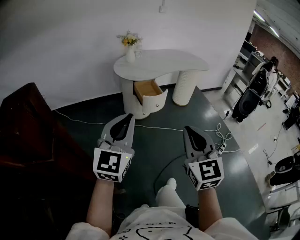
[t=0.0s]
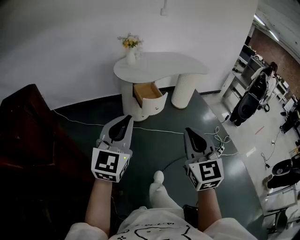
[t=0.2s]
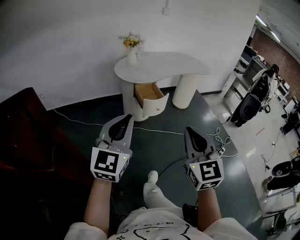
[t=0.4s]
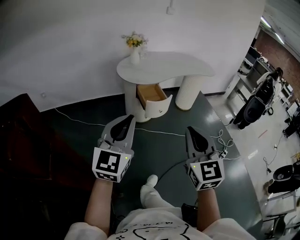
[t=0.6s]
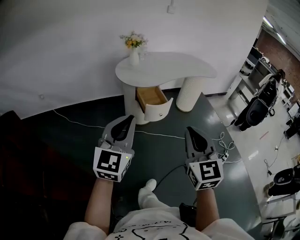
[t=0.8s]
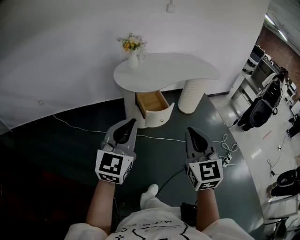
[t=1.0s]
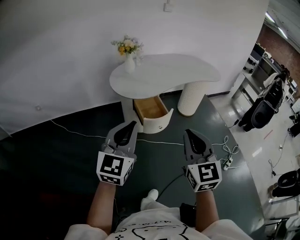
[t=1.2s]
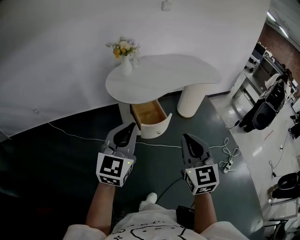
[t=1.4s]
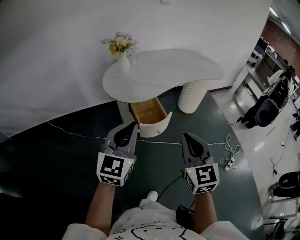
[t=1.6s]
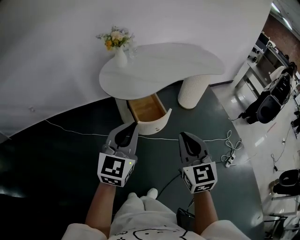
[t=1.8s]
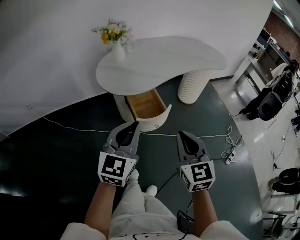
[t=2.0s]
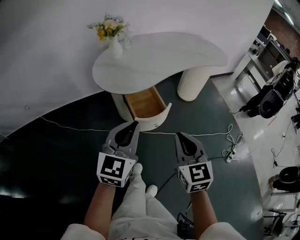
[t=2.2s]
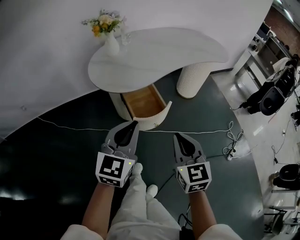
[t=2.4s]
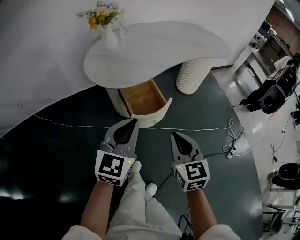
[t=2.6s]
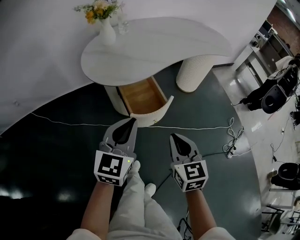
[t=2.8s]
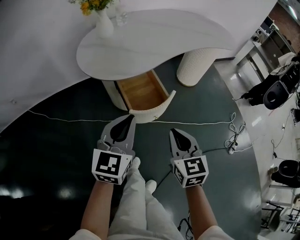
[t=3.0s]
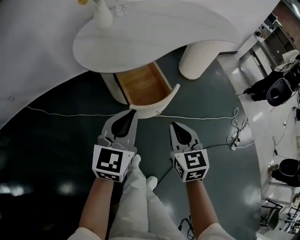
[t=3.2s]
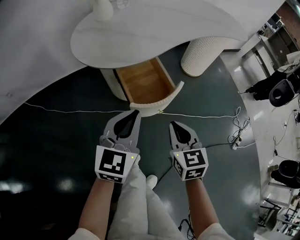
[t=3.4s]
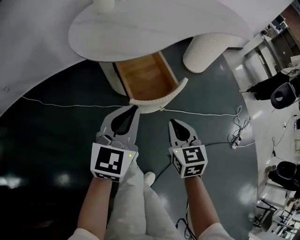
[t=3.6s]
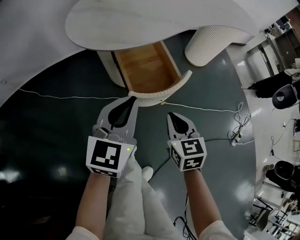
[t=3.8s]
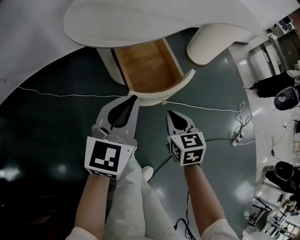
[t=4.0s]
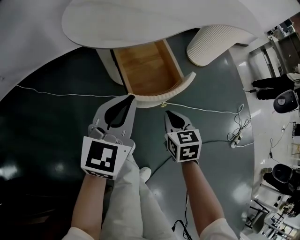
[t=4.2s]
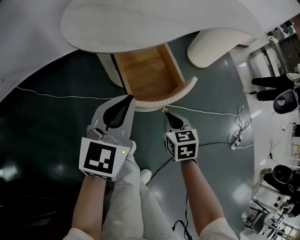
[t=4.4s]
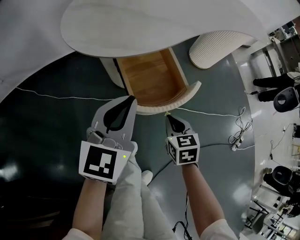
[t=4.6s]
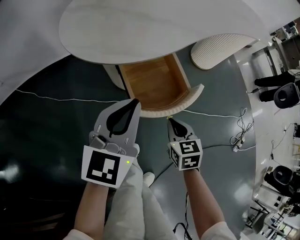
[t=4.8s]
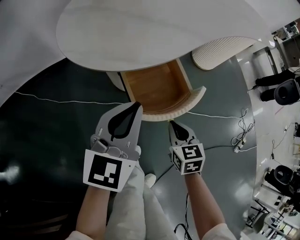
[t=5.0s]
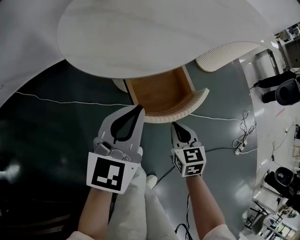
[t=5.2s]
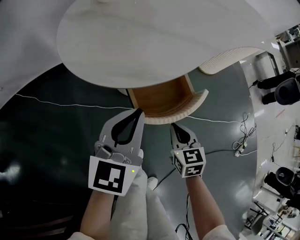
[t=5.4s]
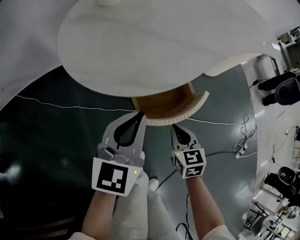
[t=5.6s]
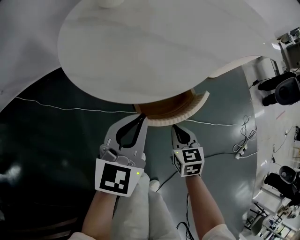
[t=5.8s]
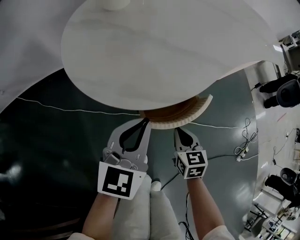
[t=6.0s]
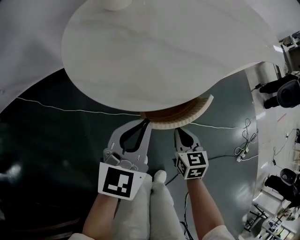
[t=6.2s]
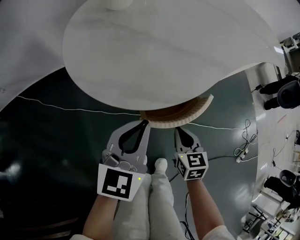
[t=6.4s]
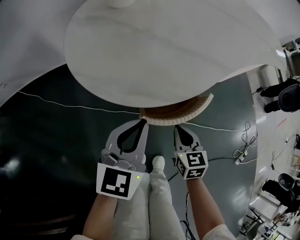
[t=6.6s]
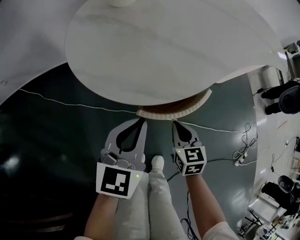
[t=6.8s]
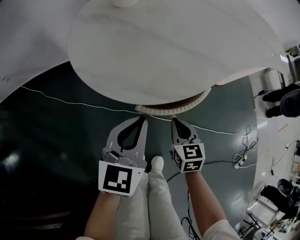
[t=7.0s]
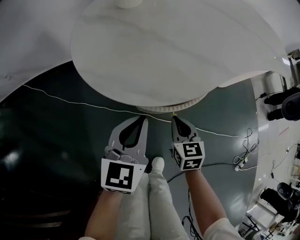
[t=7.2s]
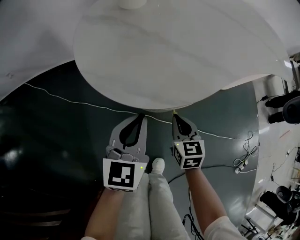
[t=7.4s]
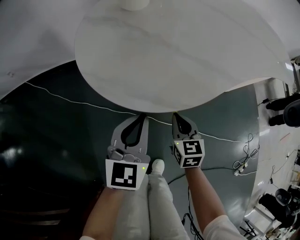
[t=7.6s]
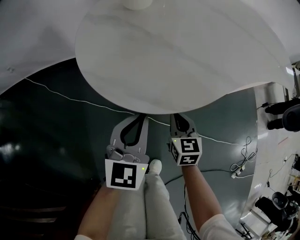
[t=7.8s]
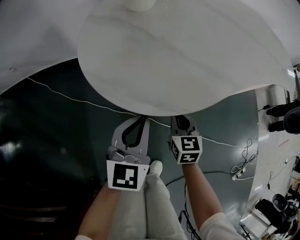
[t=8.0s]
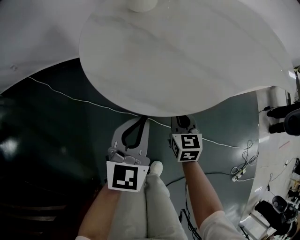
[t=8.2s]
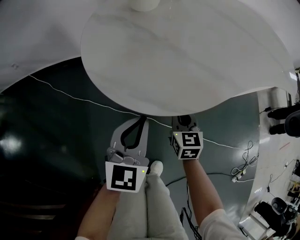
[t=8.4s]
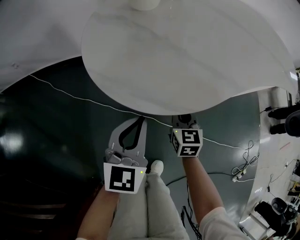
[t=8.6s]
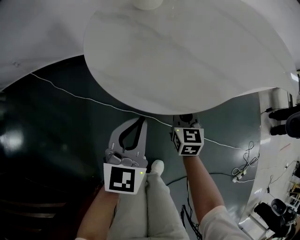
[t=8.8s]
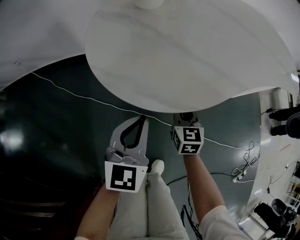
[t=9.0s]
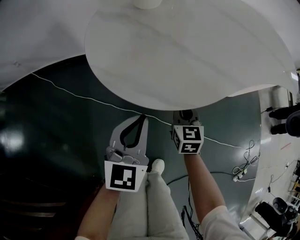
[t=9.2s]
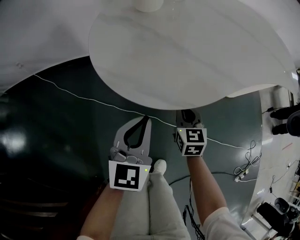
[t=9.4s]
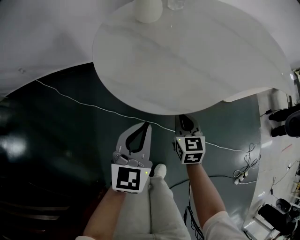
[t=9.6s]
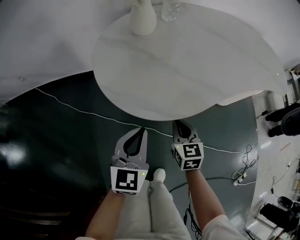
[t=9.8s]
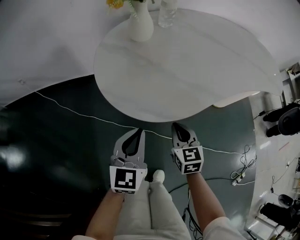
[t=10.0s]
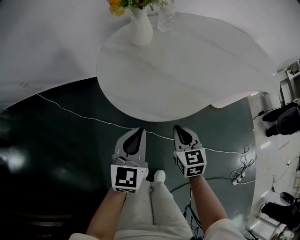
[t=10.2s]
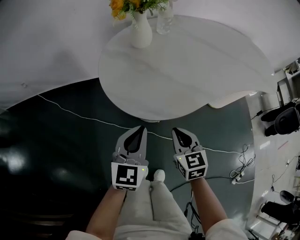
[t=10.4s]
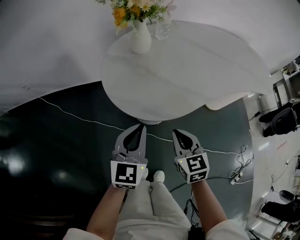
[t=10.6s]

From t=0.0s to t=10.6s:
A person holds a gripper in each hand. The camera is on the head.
From t=0.0s to t=1.6s: The grippers both shift forward by some 35 cm.
From t=1.6s to t=3.0s: The two grippers go some 25 cm downward and forward.
From t=3.0s to t=4.6s: The right gripper heads downward and forward, covering approximately 25 cm, and changes its angle by approximately 20 degrees, while the left gripper travels downward and forward by about 15 cm.
From t=4.6s to t=6.0s: The grippers both shift forward by approximately 10 cm.
From t=6.0s to t=7.6s: The right gripper shifts some 5 cm forward.
From t=7.6s to t=9.0s: The right gripper is displaced forward by roughly 5 cm.
From t=9.0s to t=10.6s: The right gripper heads upward and backward, covering about 20 cm. The left gripper moves upward, approximately 15 cm.

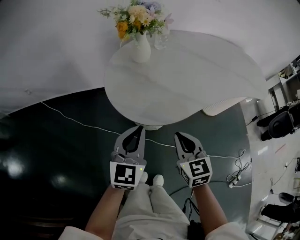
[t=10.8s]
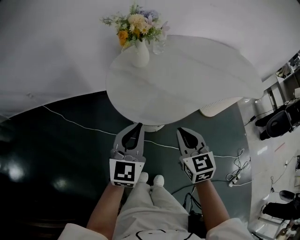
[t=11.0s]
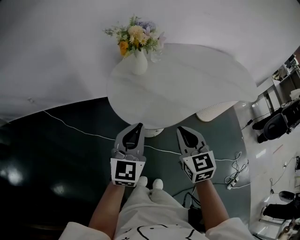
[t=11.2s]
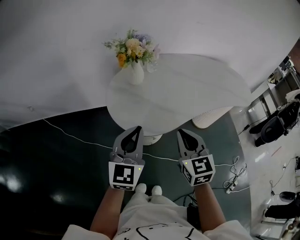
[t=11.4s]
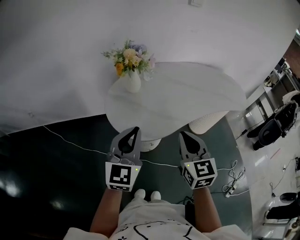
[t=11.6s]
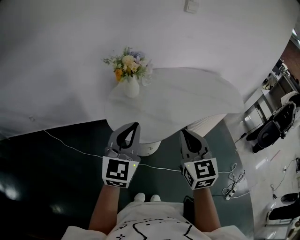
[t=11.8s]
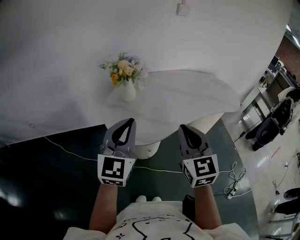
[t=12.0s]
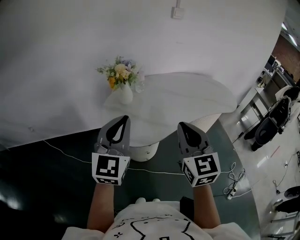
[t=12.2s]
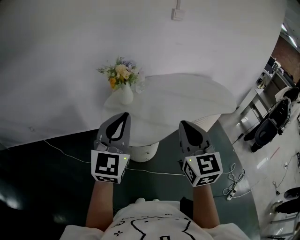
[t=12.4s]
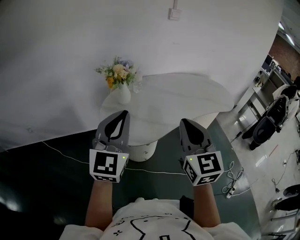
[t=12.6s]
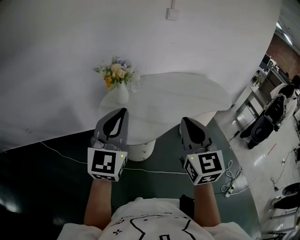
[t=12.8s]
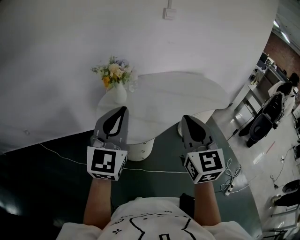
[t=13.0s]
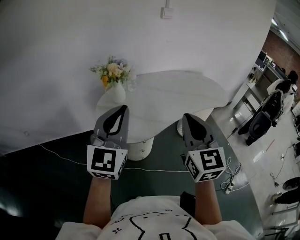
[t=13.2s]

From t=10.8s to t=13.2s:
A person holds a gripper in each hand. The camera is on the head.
From t=10.8s to t=12.0s: Both grippers move upward, about 25 cm. The right gripper changes its angle by some 20 degrees.
From t=12.0s to t=13.2s: Both grippers move upward, approximately 5 cm.

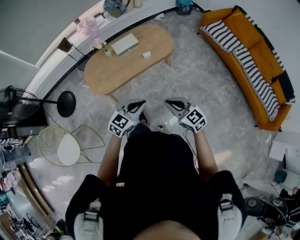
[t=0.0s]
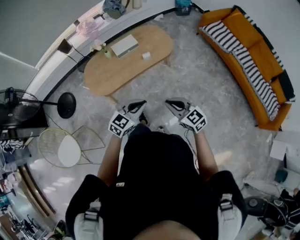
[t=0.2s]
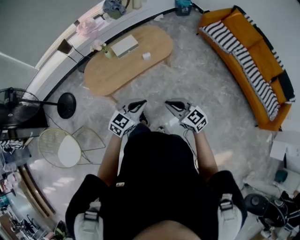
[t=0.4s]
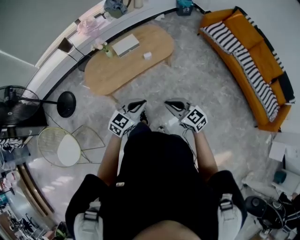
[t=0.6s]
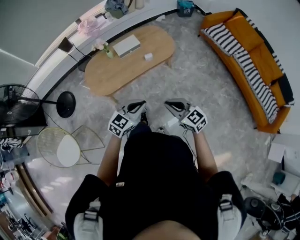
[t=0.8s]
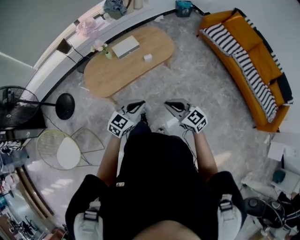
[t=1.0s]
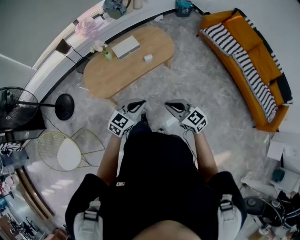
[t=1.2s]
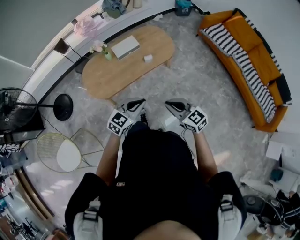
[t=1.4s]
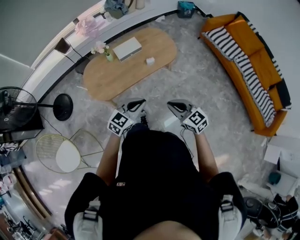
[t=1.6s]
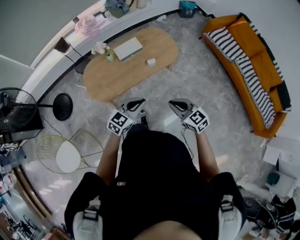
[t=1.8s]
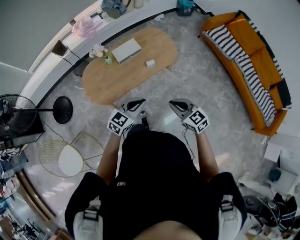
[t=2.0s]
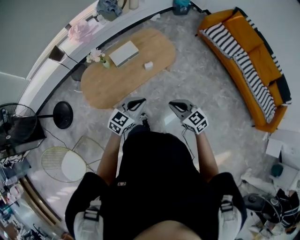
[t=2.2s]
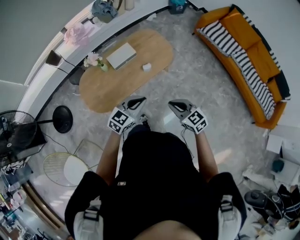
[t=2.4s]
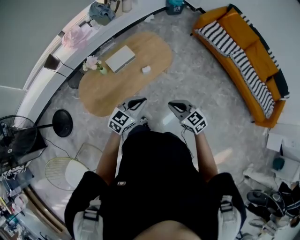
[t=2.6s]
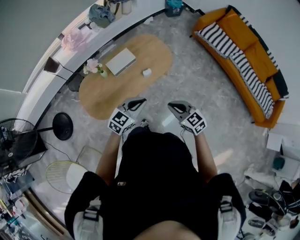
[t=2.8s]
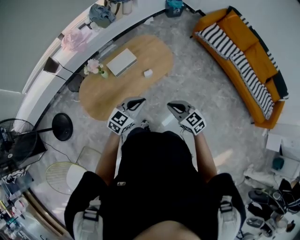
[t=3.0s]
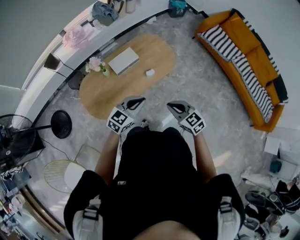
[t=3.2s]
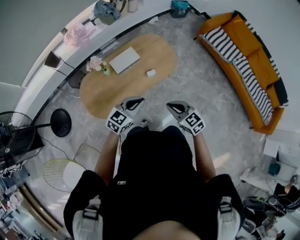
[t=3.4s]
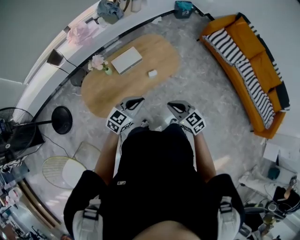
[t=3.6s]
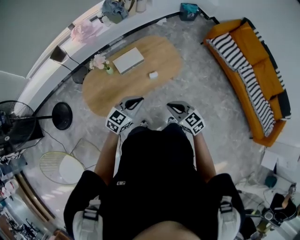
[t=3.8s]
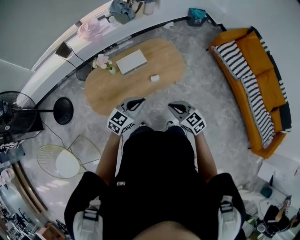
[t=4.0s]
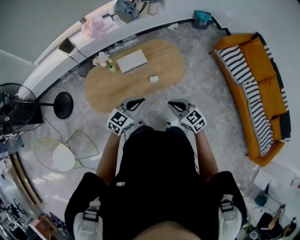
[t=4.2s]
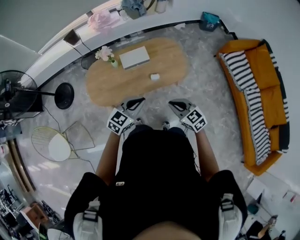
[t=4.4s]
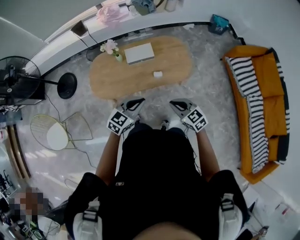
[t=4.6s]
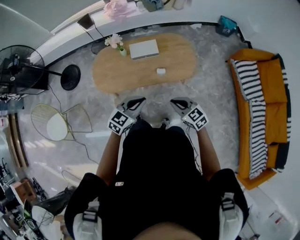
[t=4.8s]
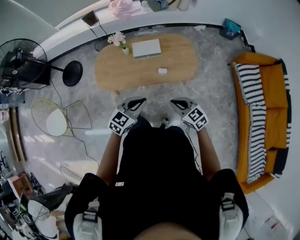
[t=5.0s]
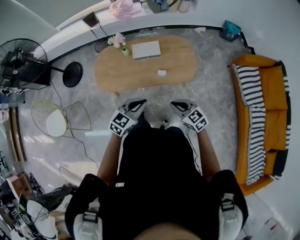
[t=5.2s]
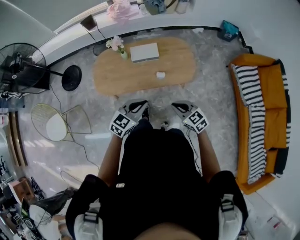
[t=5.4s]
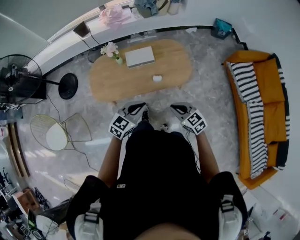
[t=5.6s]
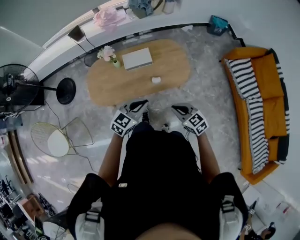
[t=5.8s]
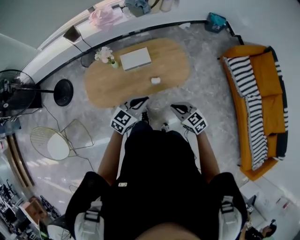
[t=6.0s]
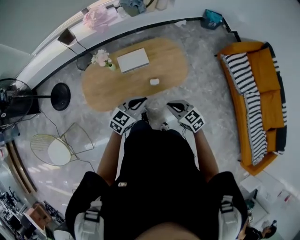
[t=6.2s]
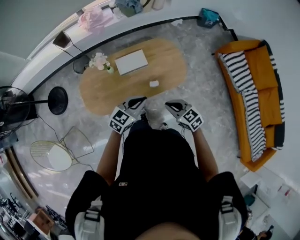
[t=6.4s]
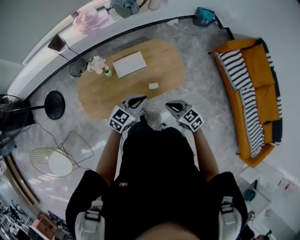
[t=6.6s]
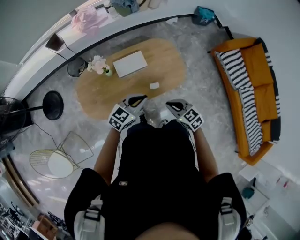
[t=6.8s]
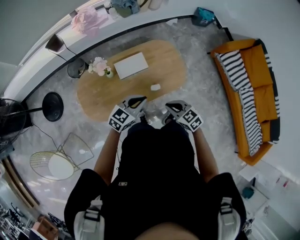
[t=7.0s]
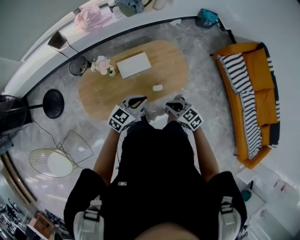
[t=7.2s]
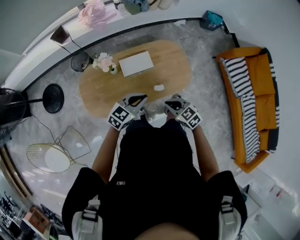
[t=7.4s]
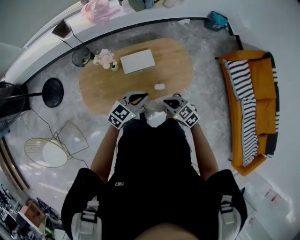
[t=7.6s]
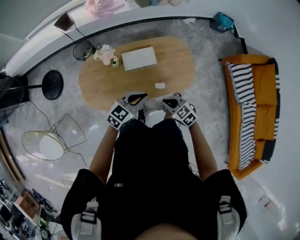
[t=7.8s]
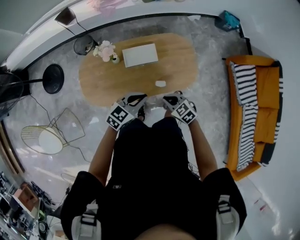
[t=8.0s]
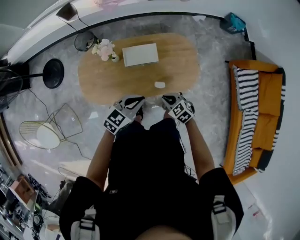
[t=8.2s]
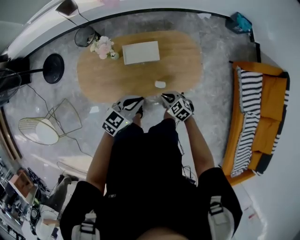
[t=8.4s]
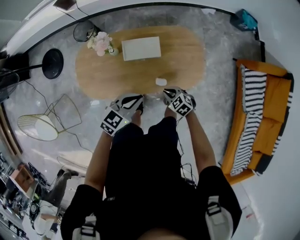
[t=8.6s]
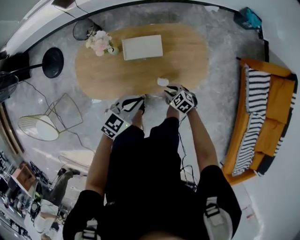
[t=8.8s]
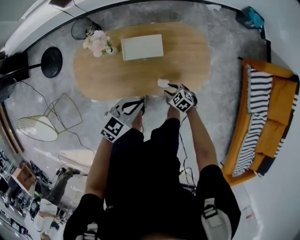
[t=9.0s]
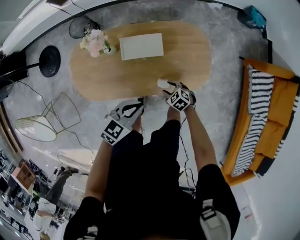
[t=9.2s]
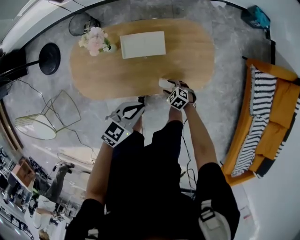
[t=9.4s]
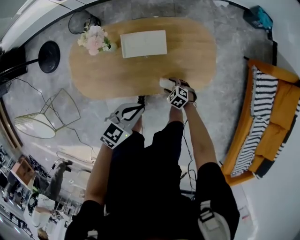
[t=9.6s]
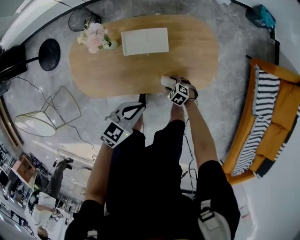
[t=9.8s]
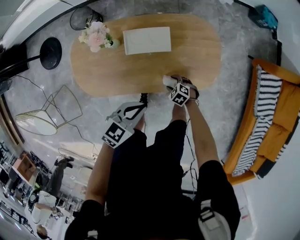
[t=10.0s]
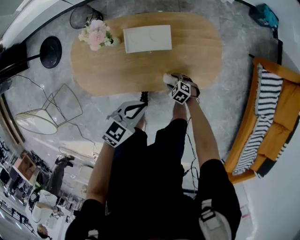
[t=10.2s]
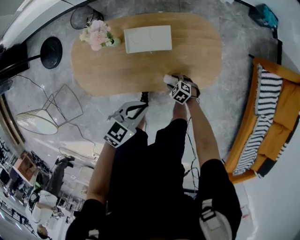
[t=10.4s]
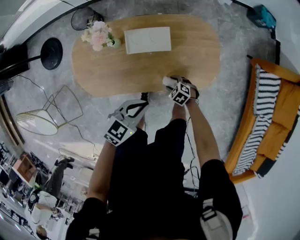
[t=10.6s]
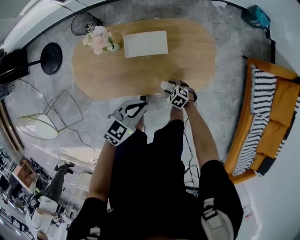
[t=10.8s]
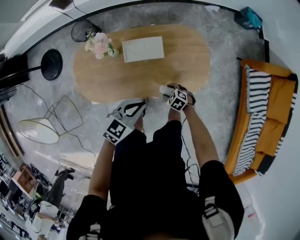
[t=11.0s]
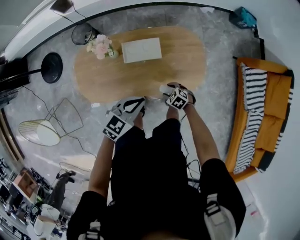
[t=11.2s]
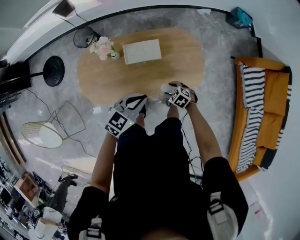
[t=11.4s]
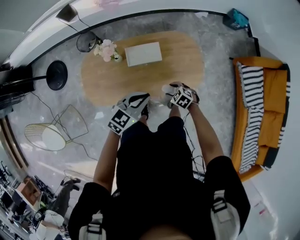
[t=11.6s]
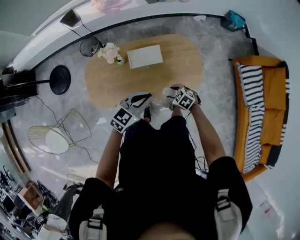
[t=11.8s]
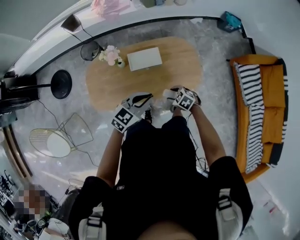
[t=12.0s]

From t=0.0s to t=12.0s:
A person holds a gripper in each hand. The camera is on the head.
From t=0.0s to t=1.6s: Both grippers move forward, about 10 cm.
From t=1.6s to t=3.0s: The two grippers go some 15 cm forward.
From t=3.0s to t=4.4s: The right gripper is displaced forward and to the right by approximately 10 cm, and swivels roughly 20 degrees. Meanwhile the left gripper is displaced to the right by approximately 5 cm, and swivels roughly 20 degrees.
From t=4.4s to t=6.0s: The left gripper heads forward, covering about 5 cm. Meanwhile the right gripper shifts by roughly 5 cm.
From t=6.0s to t=7.6s: The right gripper is displaced forward, to the left and downward by some 15 cm. Meanwhile the left gripper moves forward and to the left, roughly 15 cm.
From t=7.6s to t=9.0s: The left gripper shifts approximately 10 cm downward; the right gripper goes approximately 25 cm downward, turns by some 20 degrees, and opens.
From t=9.0s to t=10.4s: The right gripper shifts approximately 10 cm downward.
From t=10.4s to t=12.0s: Both grippers move upward, roughly 20 cm.
